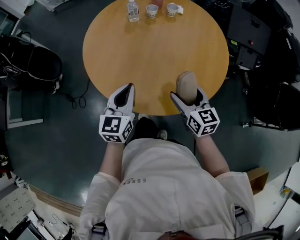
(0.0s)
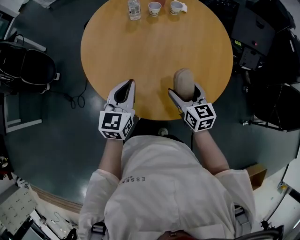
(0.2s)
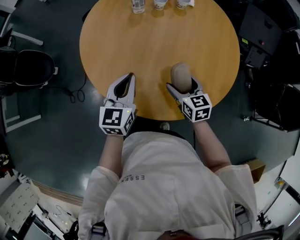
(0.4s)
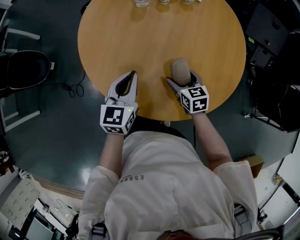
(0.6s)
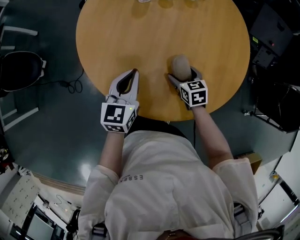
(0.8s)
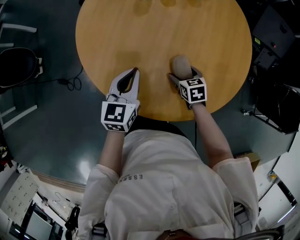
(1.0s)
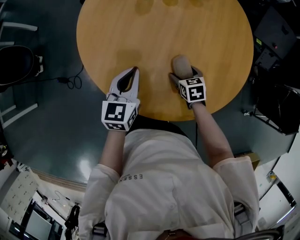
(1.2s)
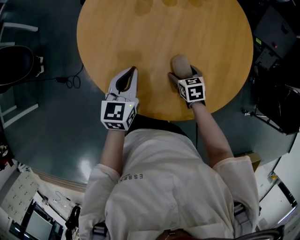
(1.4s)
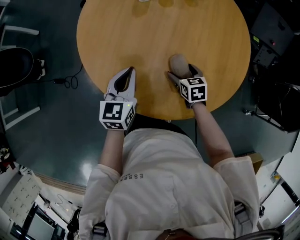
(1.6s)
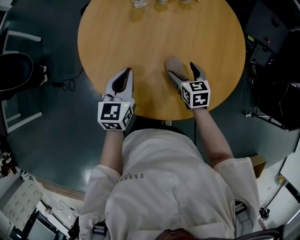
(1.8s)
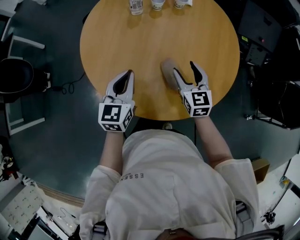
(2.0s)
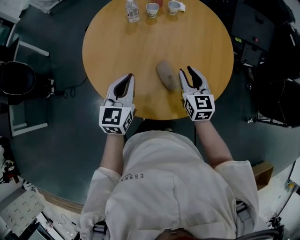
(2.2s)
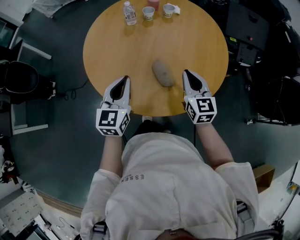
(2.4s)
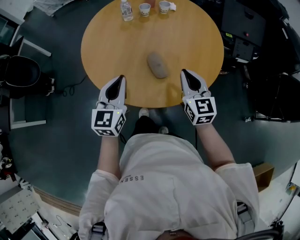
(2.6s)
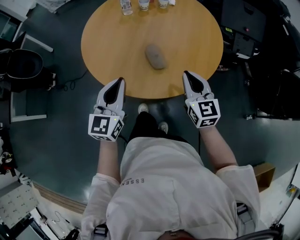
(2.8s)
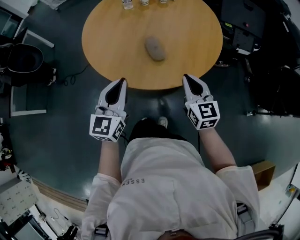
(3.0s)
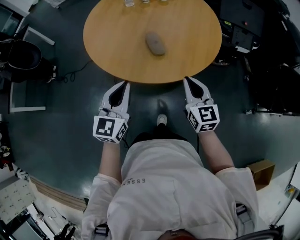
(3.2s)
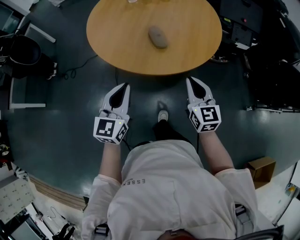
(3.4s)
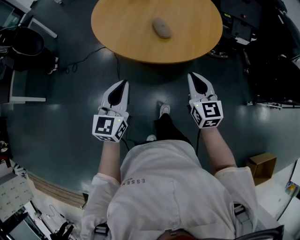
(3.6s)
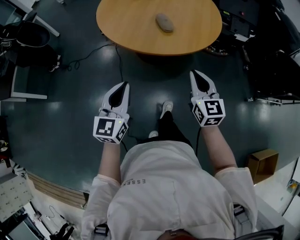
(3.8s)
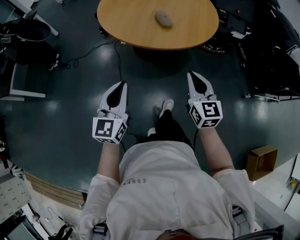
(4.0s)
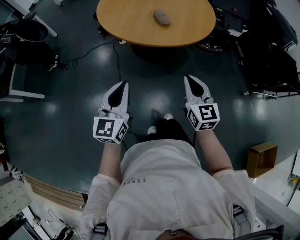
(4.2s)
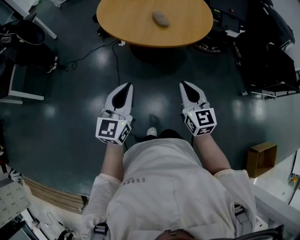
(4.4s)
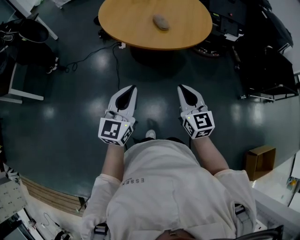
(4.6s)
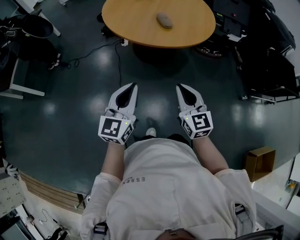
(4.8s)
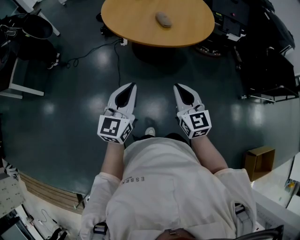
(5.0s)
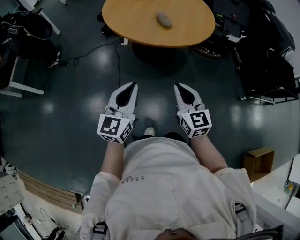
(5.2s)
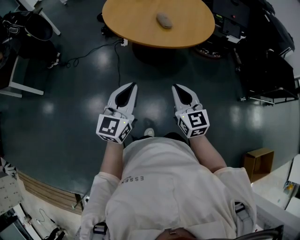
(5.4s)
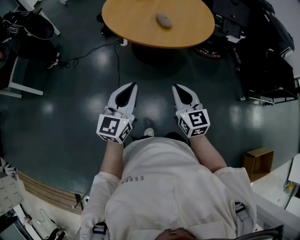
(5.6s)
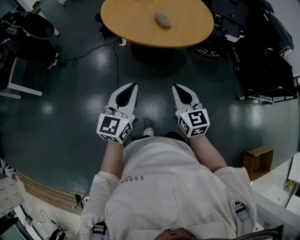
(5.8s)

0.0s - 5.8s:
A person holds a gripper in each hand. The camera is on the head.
0.0s - 1.4s: The right gripper is displaced downward and forward by some 25 cm, and points its fingers approximately 40 degrees further downward. The left gripper shifts roughly 15 cm forward, downward and to the left.
1.4s - 2.8s: The right gripper shifts some 35 cm upward, backward and to the right, tips its fingers upward by approximately 40 degrees, and closes its fingers. The left gripper travels backward, upward and to the right by approximately 25 cm, and rotates some 20 degrees.
2.8s - 4.4s: Both grippers travel together backward, about 40 cm.
4.4s - 5.8s: The grippers make only small movements.

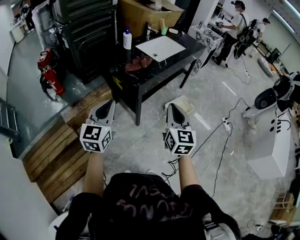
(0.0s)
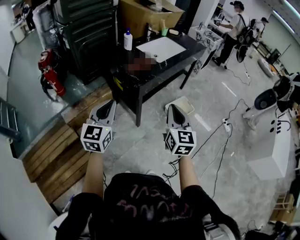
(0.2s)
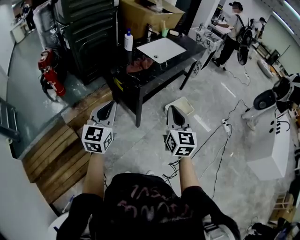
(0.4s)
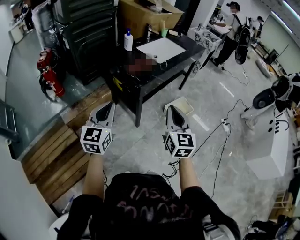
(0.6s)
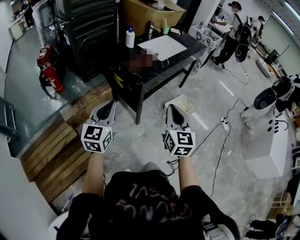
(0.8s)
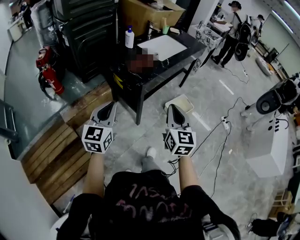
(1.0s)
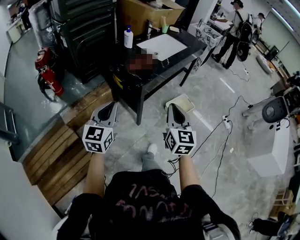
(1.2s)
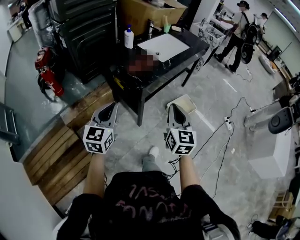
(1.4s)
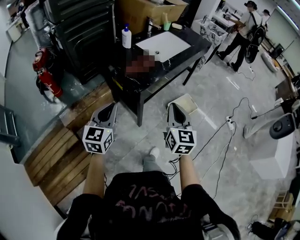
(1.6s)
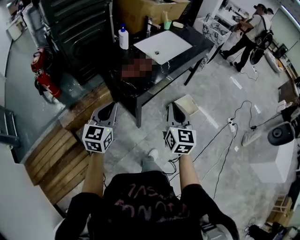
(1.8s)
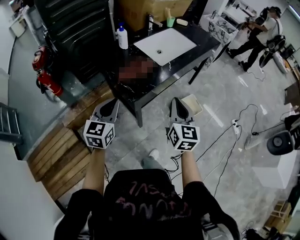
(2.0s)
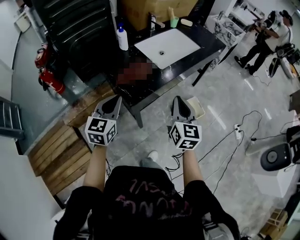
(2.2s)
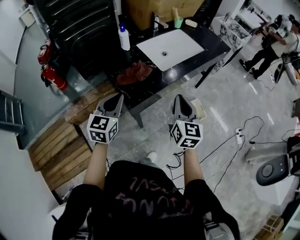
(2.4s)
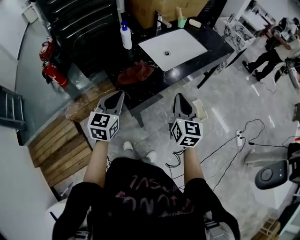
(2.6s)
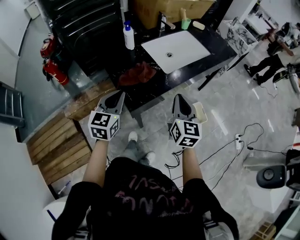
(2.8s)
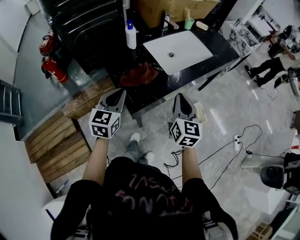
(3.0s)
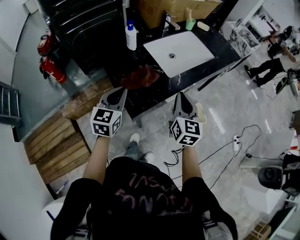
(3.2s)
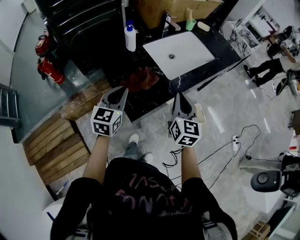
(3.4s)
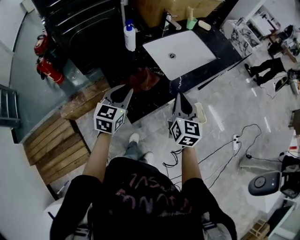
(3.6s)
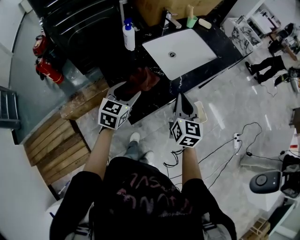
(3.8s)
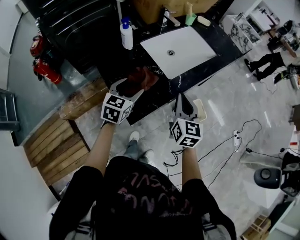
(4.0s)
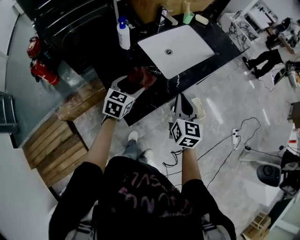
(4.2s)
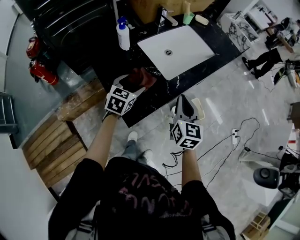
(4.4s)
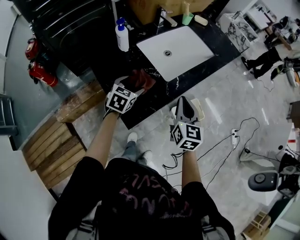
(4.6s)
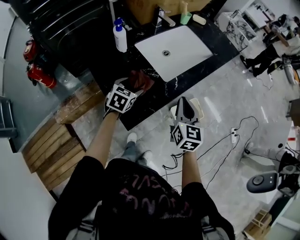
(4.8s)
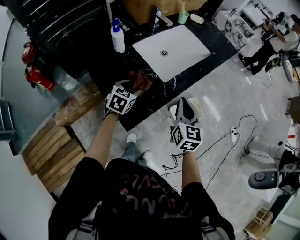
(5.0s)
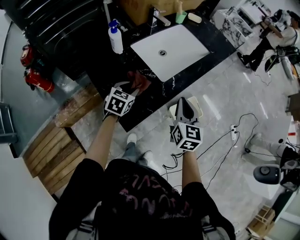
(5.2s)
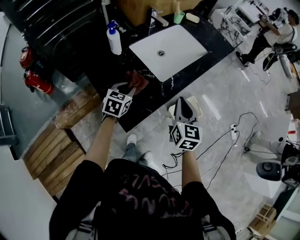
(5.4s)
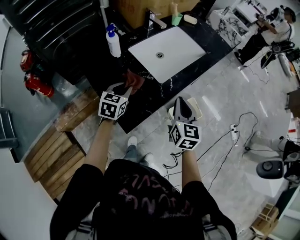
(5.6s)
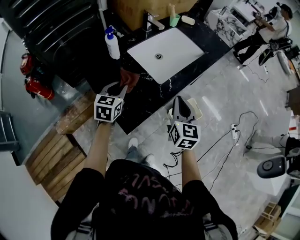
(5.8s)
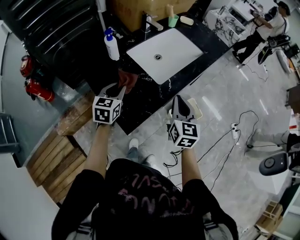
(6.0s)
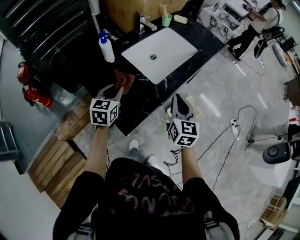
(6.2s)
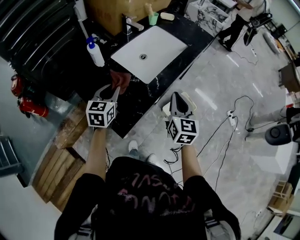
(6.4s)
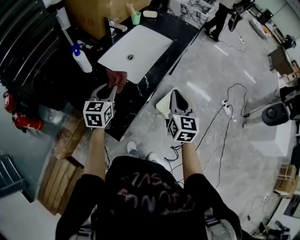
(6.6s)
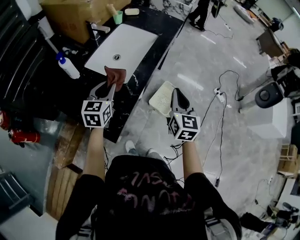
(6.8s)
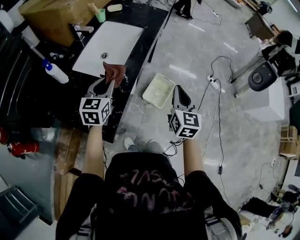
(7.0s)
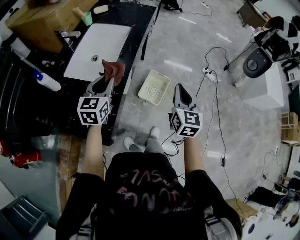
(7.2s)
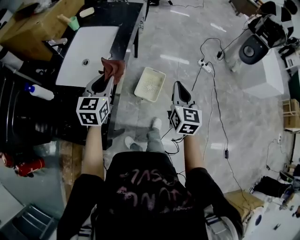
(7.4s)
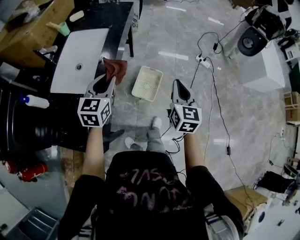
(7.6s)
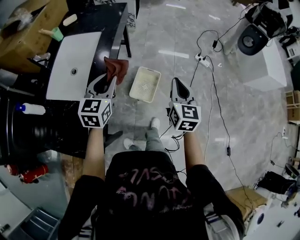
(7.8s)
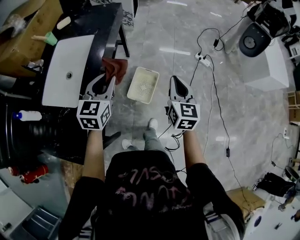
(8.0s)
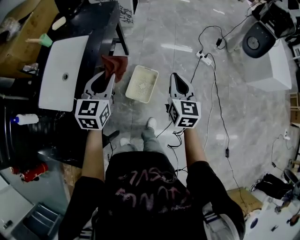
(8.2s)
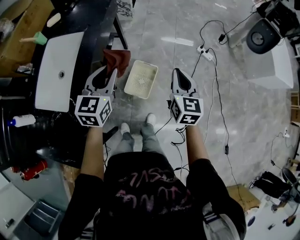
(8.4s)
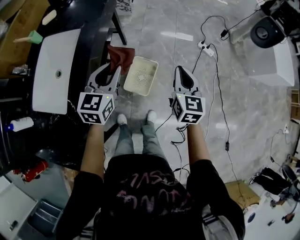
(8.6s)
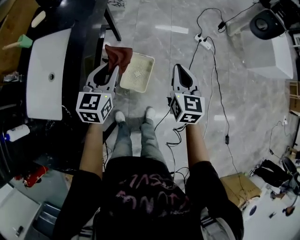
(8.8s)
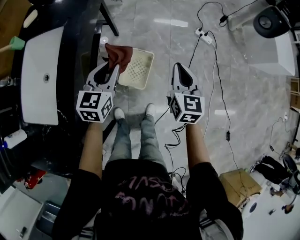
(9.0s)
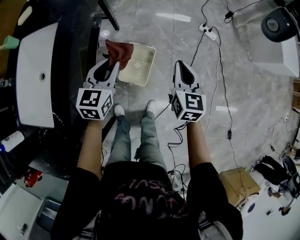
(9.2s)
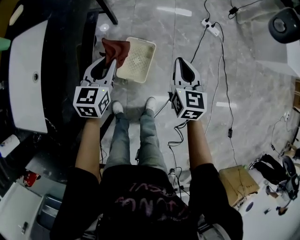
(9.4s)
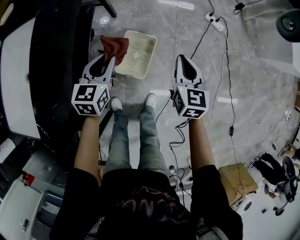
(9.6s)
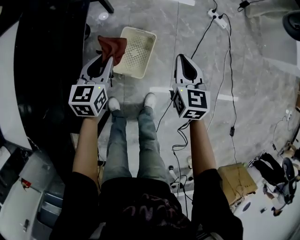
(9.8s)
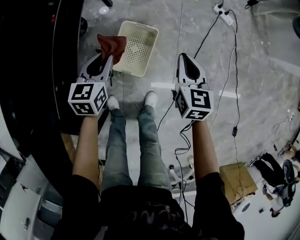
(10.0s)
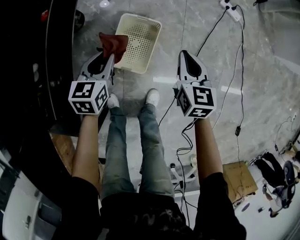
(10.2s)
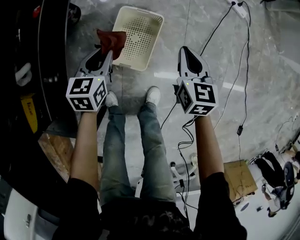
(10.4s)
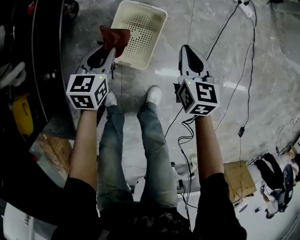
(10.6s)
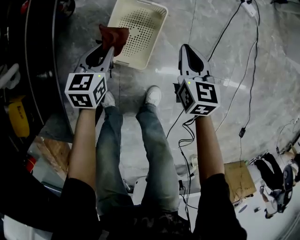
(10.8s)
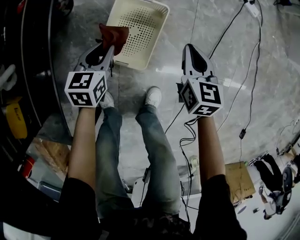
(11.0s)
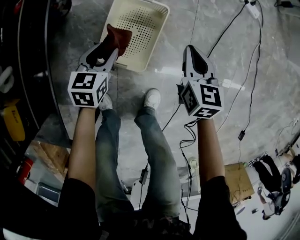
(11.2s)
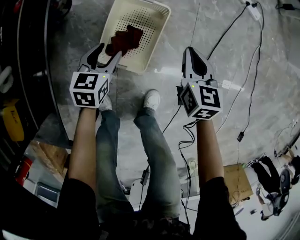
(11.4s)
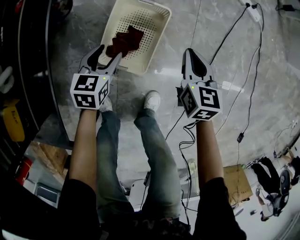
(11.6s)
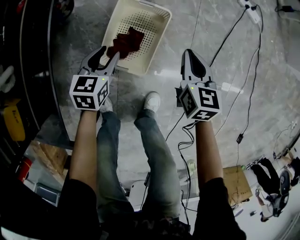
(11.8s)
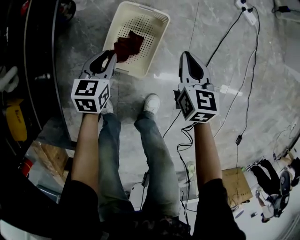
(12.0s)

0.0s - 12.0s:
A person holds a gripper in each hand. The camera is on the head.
0.0s - 1.6s: The right gripper is displaced forward by some 10 cm. The left gripper moves forward and downward, approximately 10 cm.
1.6s - 3.0s: Both grippers move forward, about 25 cm.
3.0s - 4.4s: The left gripper is displaced forward and downward by roughly 20 cm, changes its angle by roughly 20 degrees, and opens, while the right gripper travels forward by approximately 5 cm.
4.4s - 6.0s: The left gripper changes place by approximately 5 cm, and closes up.
6.0s - 7.6s: The left gripper shifts by about 30 cm, and swivels approximately 40 degrees. Meanwhile the right gripper ends up approximately 30 cm from where it was, and rotates approximately 40 degrees.
7.6s - 9.0s: The two grippers go roughly 25 cm forward, downward and to the right.
9.0s - 10.4s: Both grippers travel together downward, roughly 40 cm. The left gripper changes its angle by approximately 20 degrees.
10.4s - 12.0s: The grippers both shift downward by roughly 10 cm. The left gripper opens, then closes again.

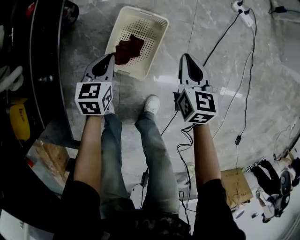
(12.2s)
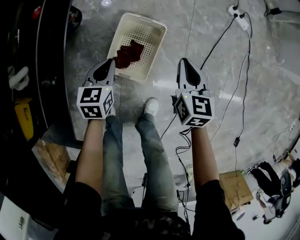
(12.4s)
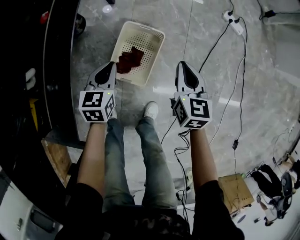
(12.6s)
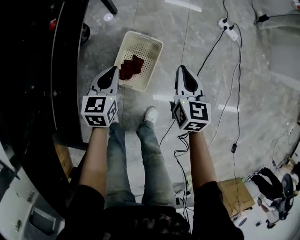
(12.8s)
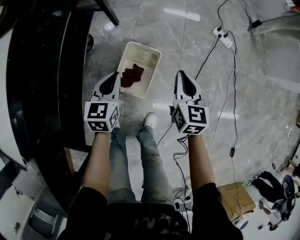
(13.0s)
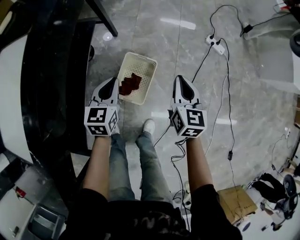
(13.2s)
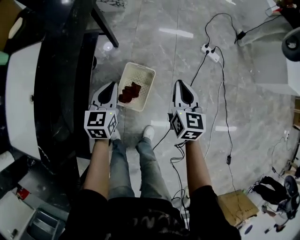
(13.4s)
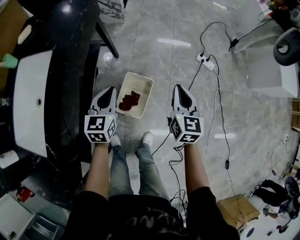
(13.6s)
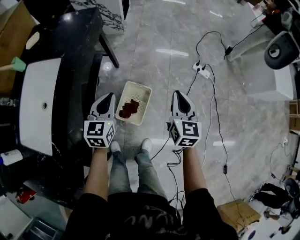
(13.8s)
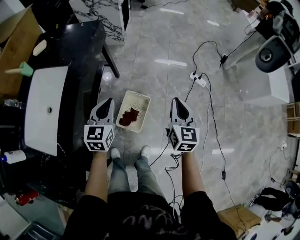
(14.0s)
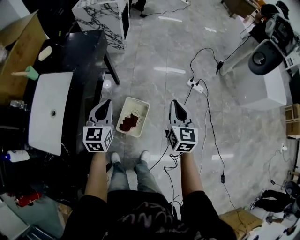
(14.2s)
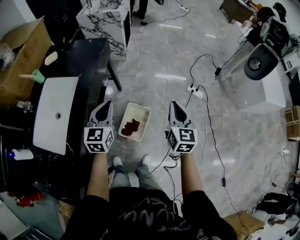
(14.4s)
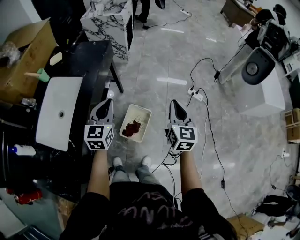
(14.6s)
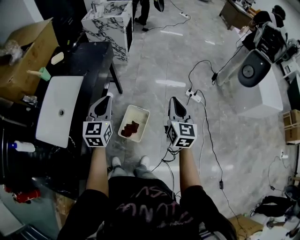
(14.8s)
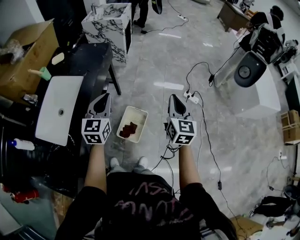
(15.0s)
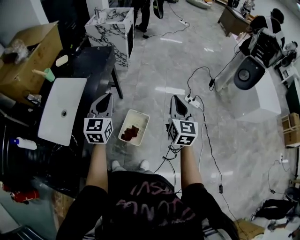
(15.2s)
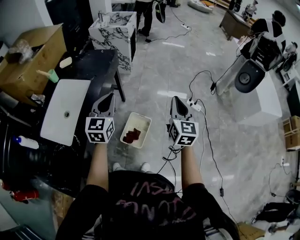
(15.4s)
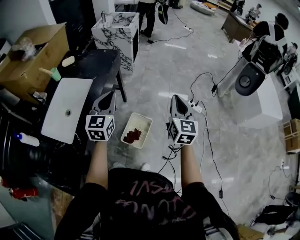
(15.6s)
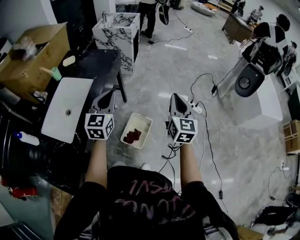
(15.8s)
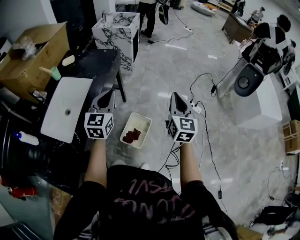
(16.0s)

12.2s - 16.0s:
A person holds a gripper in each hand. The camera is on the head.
12.2s - 13.4s: Both grippers travel together upward, some 35 cm.
13.4s - 14.8s: The two grippers go some 30 cm upward.
14.8s - 16.0s: Both grippers travel together upward, about 5 cm.

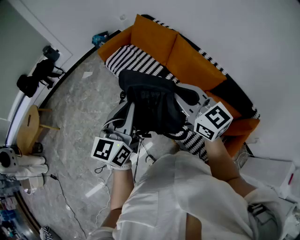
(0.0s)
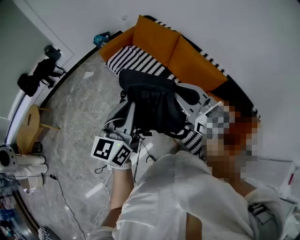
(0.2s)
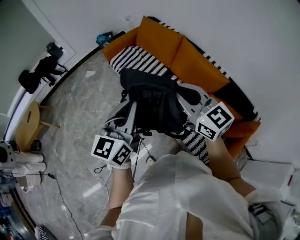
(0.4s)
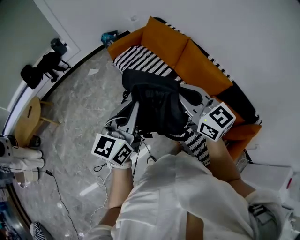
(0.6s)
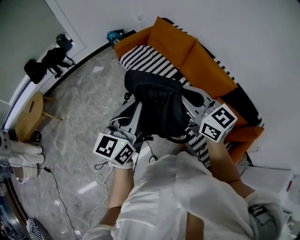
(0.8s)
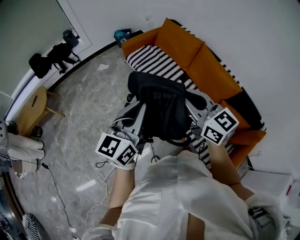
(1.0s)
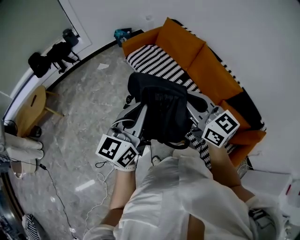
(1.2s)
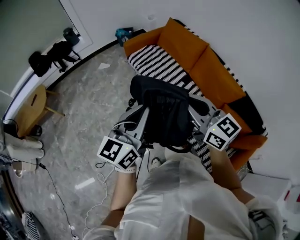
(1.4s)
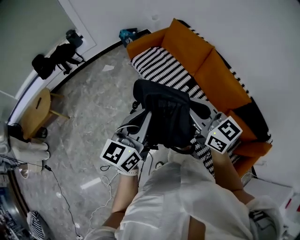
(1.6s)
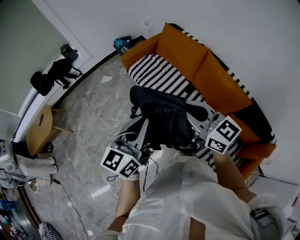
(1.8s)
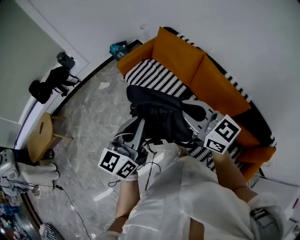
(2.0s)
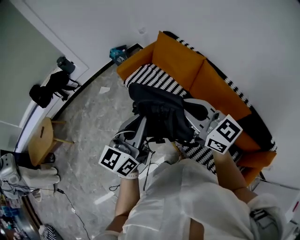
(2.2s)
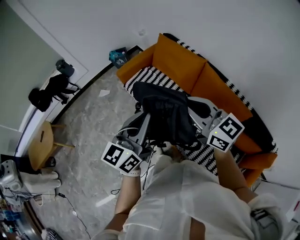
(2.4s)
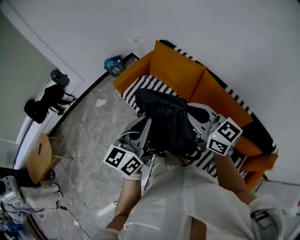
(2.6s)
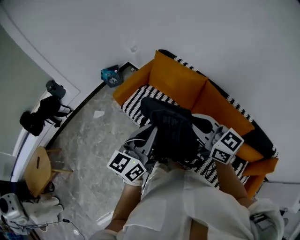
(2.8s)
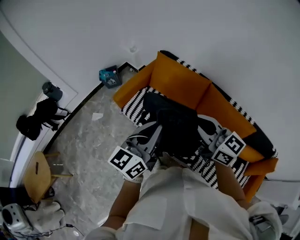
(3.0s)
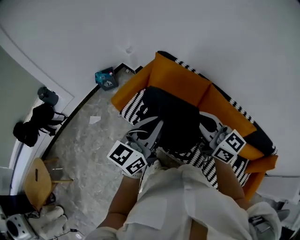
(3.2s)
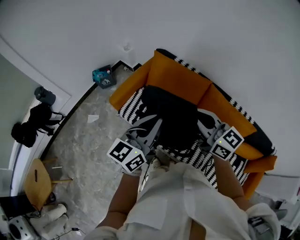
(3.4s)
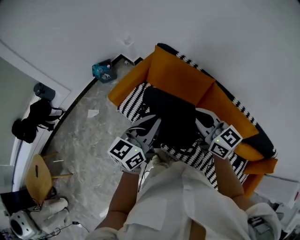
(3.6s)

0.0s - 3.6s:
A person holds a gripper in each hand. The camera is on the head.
0.0s - 1.8s: The right gripper travels to the left and forward by roughly 15 cm. Meanwhile the left gripper shifts approximately 10 cm forward and to the left.
1.8s - 3.6s: The grippers both shift forward by roughly 35 cm. The left gripper rotates some 20 degrees. Meanwhile the right gripper rotates roughly 20 degrees.
